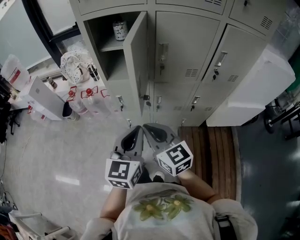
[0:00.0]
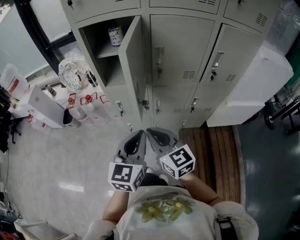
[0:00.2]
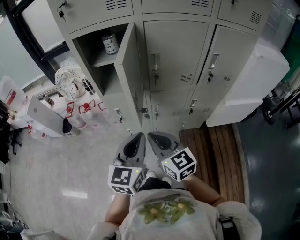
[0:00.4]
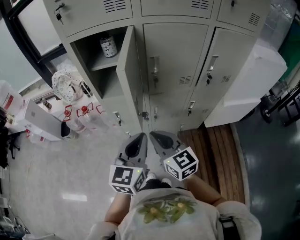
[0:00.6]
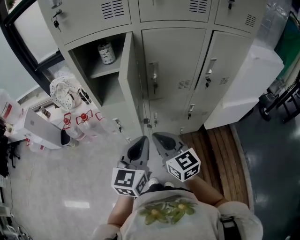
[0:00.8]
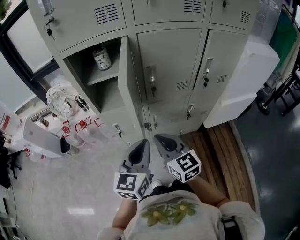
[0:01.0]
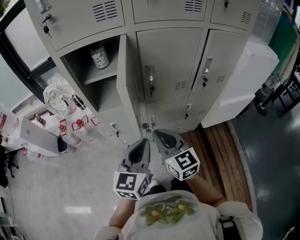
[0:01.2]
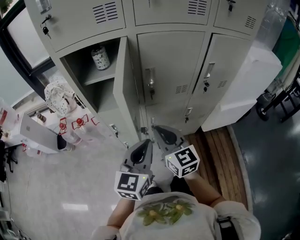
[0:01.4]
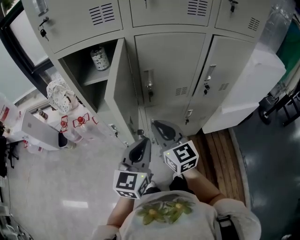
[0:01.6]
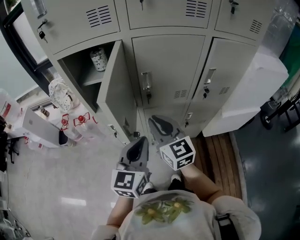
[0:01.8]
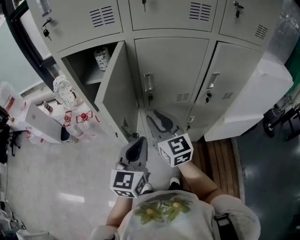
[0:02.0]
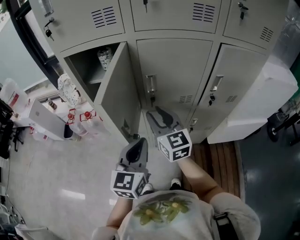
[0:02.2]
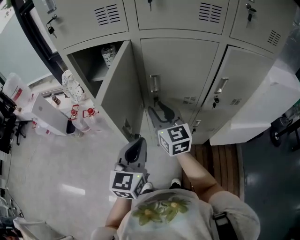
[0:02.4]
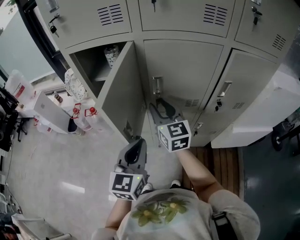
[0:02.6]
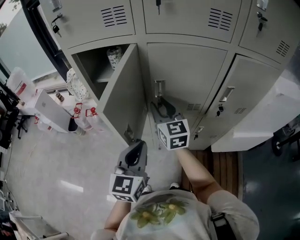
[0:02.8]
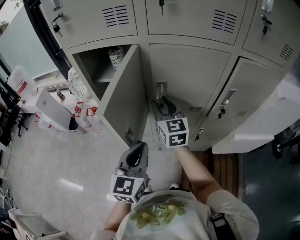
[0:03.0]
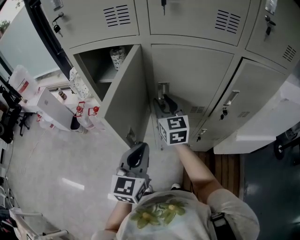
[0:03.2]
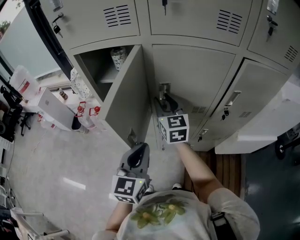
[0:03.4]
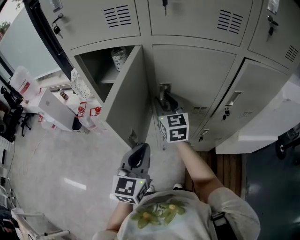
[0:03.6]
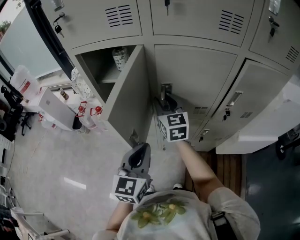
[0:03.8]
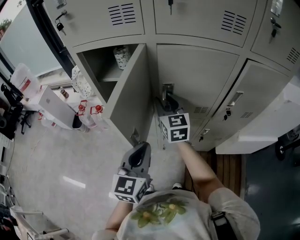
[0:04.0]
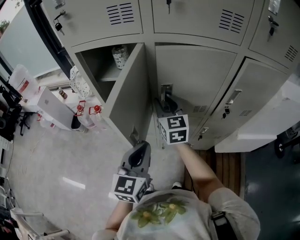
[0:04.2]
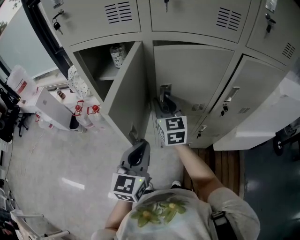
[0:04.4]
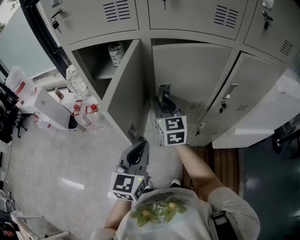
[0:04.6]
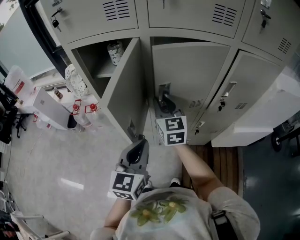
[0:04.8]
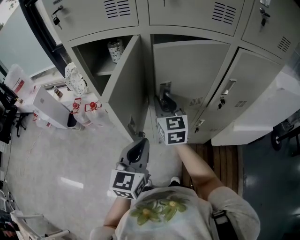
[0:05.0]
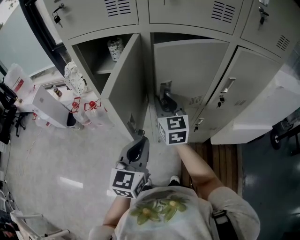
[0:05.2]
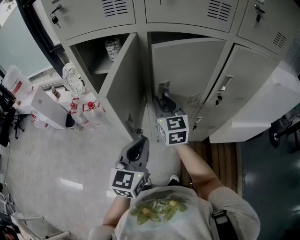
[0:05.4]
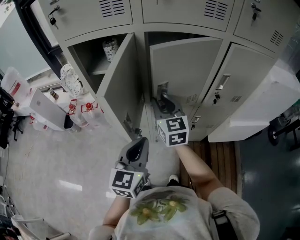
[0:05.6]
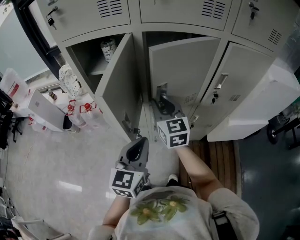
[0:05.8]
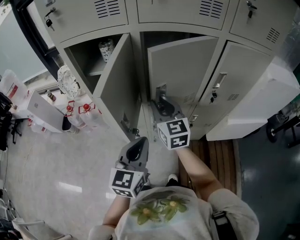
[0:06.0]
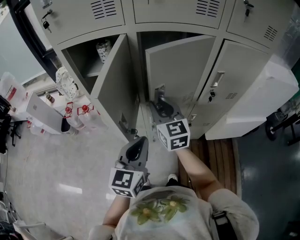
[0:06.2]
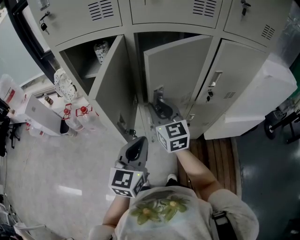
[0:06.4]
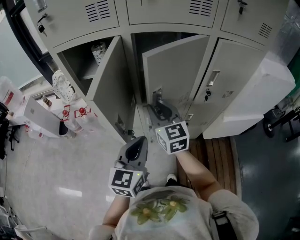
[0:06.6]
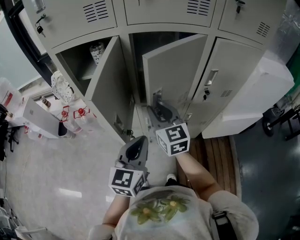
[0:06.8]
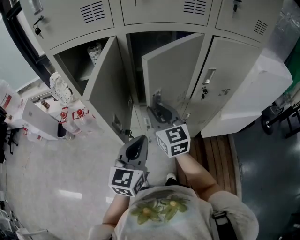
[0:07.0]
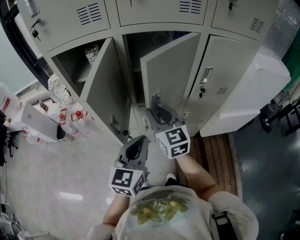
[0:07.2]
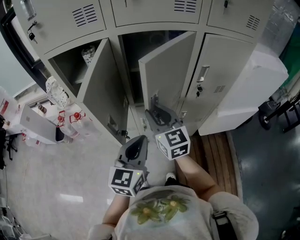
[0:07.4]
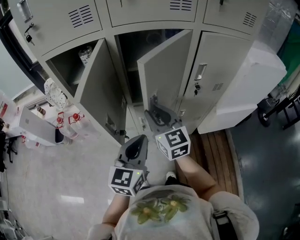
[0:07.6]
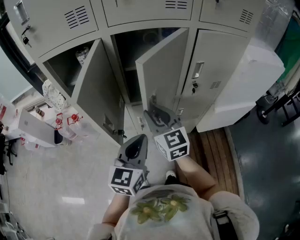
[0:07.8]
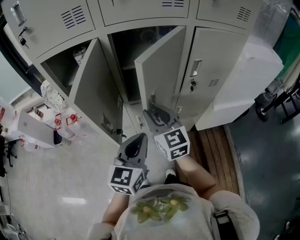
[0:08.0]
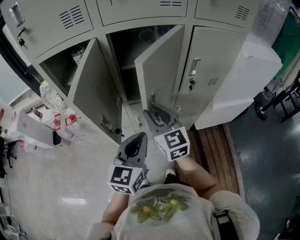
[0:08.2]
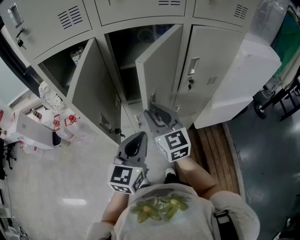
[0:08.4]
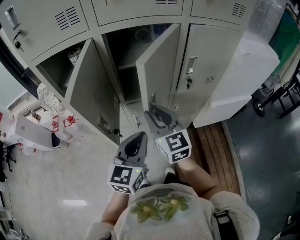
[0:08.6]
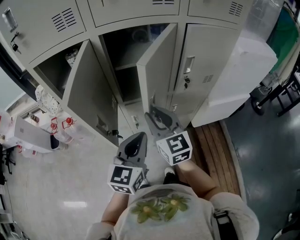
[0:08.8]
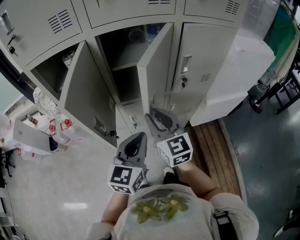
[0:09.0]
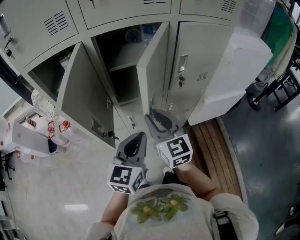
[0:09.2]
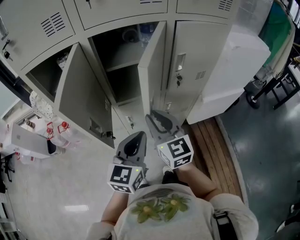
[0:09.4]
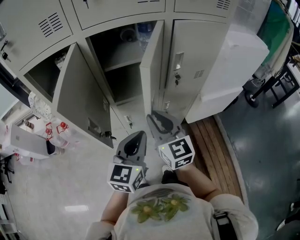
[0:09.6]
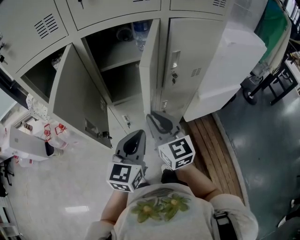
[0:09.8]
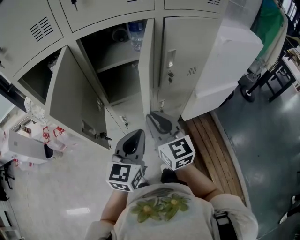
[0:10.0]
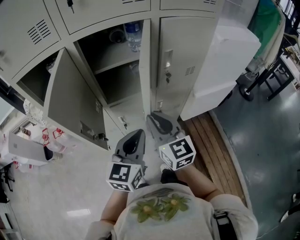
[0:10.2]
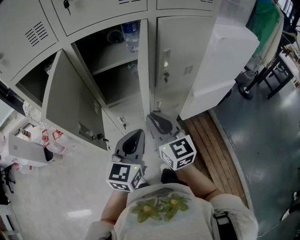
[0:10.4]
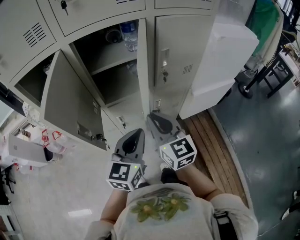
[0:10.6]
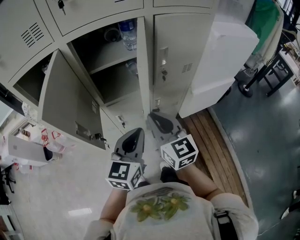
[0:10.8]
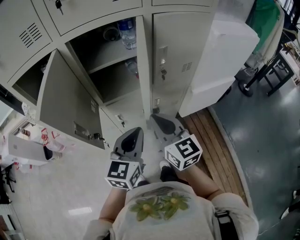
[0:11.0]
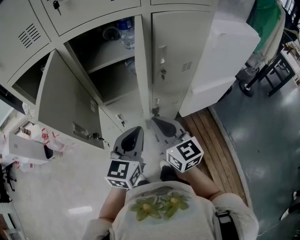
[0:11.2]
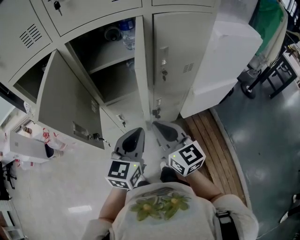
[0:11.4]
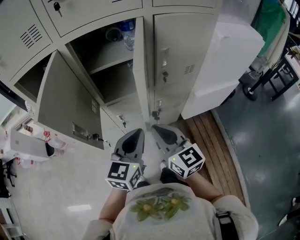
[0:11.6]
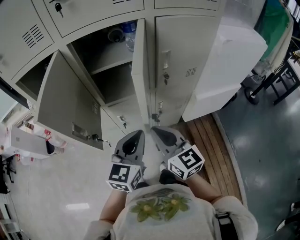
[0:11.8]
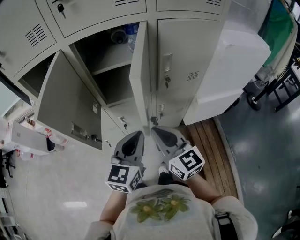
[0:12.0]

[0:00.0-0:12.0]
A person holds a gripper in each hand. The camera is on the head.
0:00.0 to 0:01.6: The right gripper is displaced forward and to the right by some 15 cm, while the left gripper is displaced forward by roughly 10 cm.
0:01.6 to 0:03.0: The right gripper is displaced forward by approximately 15 cm, and opens up.
0:03.0 to 0:04.4: There are only small adjustments of the grippers.
0:04.4 to 0:06.0: The right gripper moves backward, some 5 cm.
0:06.0 to 0:07.6: The right gripper travels backward by about 5 cm.
0:07.6 to 0:09.0: The right gripper shifts by roughly 5 cm.
0:09.0 to 0:10.4: The right gripper goes some 5 cm to the right.
0:10.4 to 0:12.0: The grippers make only small movements.

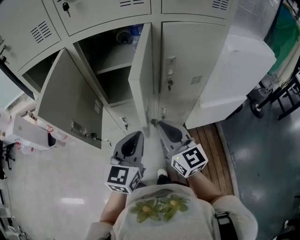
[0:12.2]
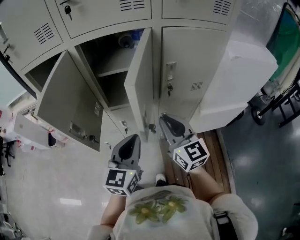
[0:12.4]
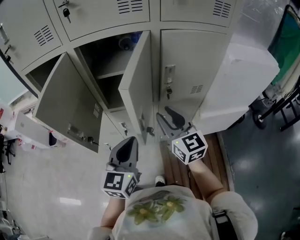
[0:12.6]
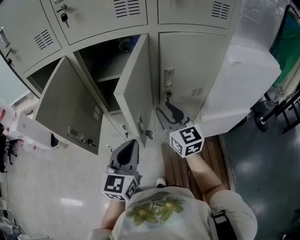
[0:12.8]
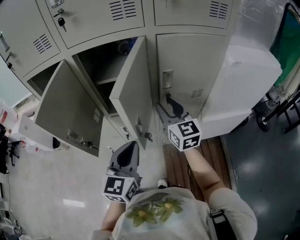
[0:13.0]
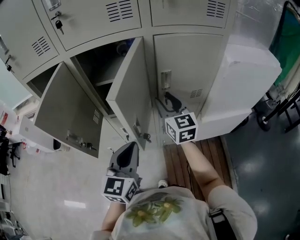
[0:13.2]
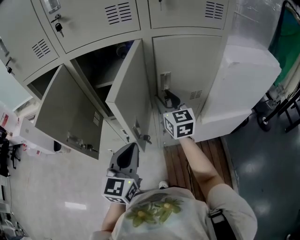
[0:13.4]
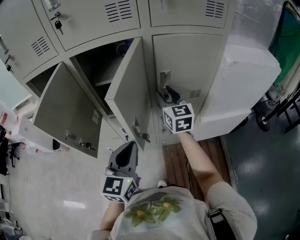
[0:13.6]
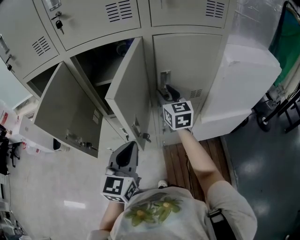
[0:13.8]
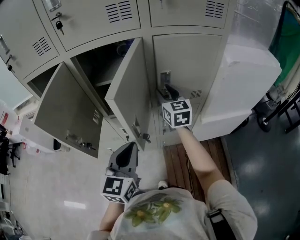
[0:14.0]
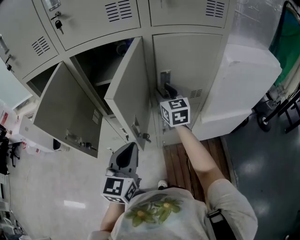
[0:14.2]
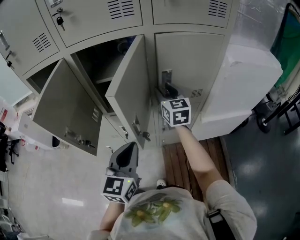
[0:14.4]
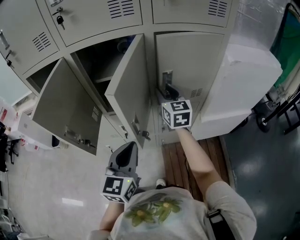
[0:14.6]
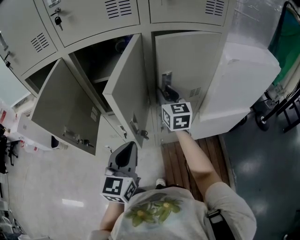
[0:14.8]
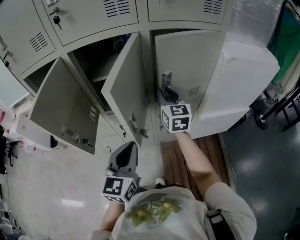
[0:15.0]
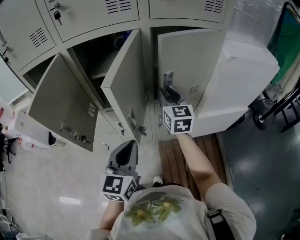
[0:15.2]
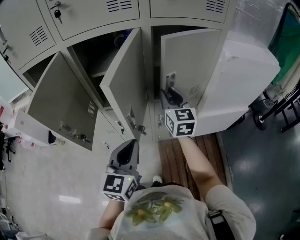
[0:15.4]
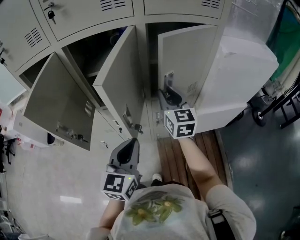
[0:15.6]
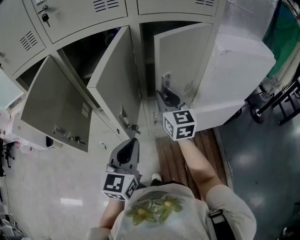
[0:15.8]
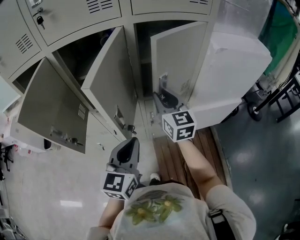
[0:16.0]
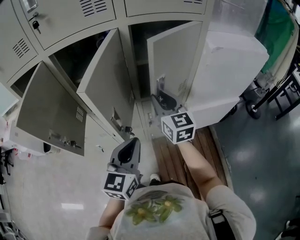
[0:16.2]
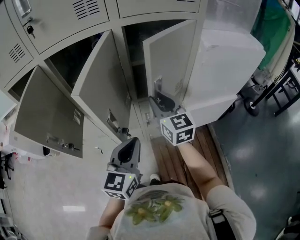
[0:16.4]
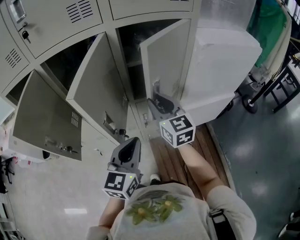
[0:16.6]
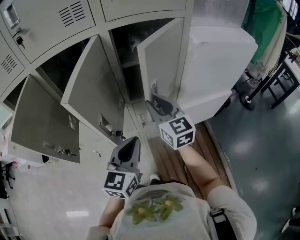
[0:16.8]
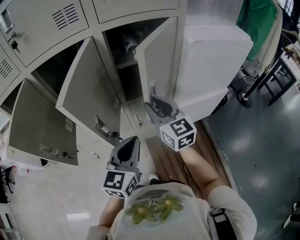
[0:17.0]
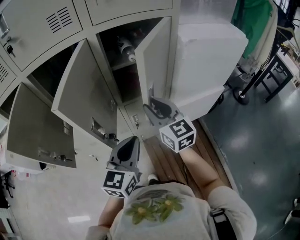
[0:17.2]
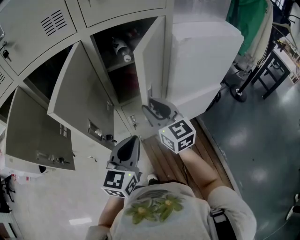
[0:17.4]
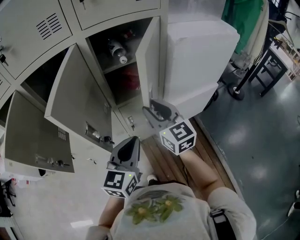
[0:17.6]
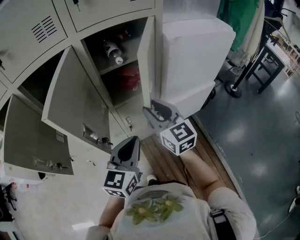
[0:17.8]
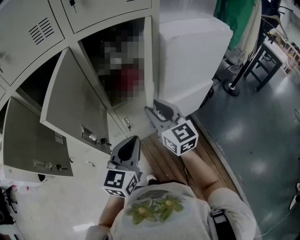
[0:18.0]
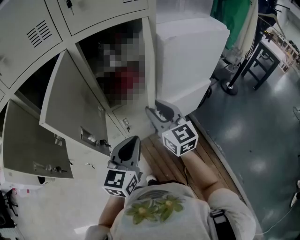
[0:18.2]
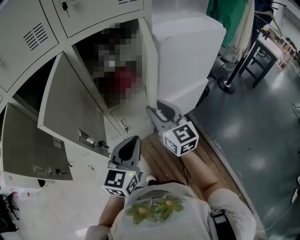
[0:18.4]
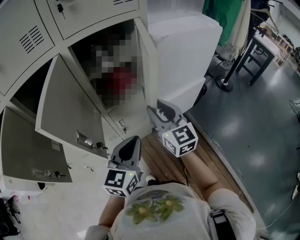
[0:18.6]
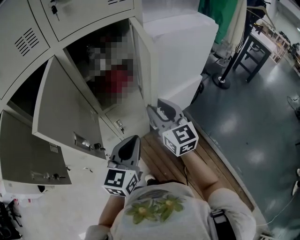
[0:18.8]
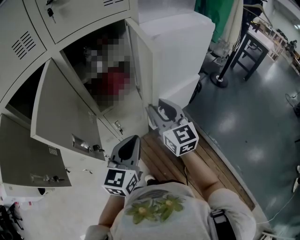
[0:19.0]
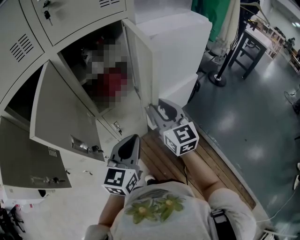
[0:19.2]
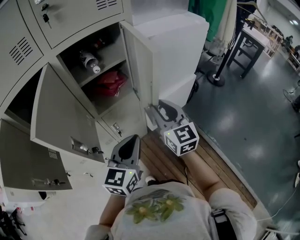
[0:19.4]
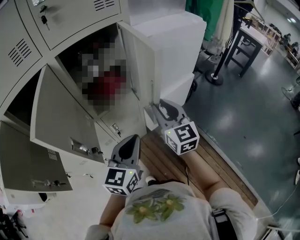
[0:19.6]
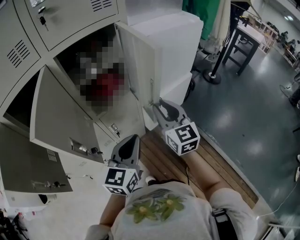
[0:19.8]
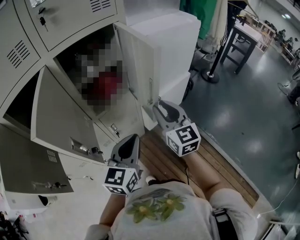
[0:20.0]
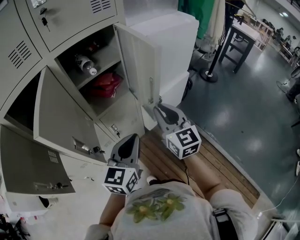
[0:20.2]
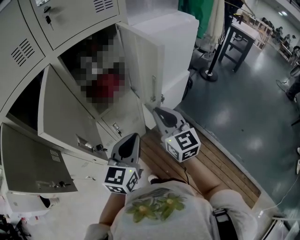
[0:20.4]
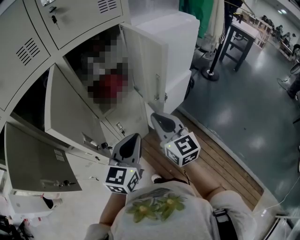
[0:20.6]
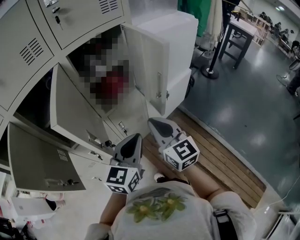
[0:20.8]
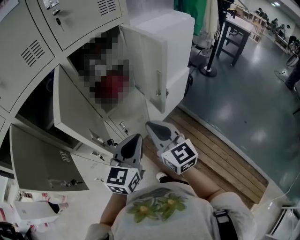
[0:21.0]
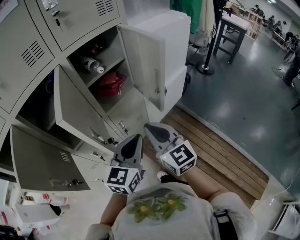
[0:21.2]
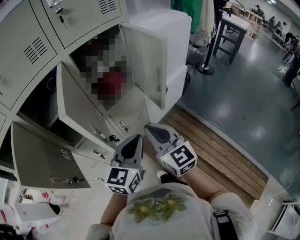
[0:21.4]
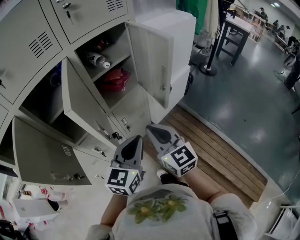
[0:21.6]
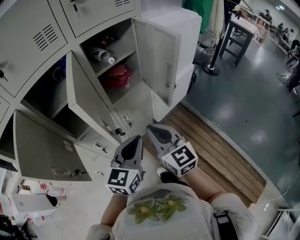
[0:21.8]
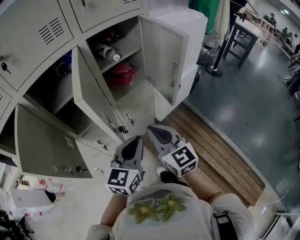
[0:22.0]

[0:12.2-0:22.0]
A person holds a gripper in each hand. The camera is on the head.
0:12.2 to 0:13.6: The right gripper goes roughly 20 cm forward, and opens.
0:13.6 to 0:15.0: The grippers move only a little.
0:15.0 to 0:16.4: The right gripper goes approximately 5 cm backward, while the left gripper goes roughly 5 cm to the right.
0:16.4 to 0:17.8: The two grippers go approximately 5 cm to the right.
0:17.8 to 0:19.2: The right gripper heads to the right, covering some 10 cm.
0:19.2 to 0:20.6: The right gripper moves backward, roughly 10 cm, and closes.
0:20.6 to 0:22.0: Both grippers move to the left and backward, some 10 cm.

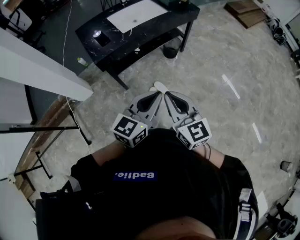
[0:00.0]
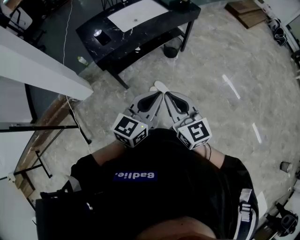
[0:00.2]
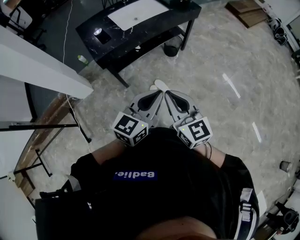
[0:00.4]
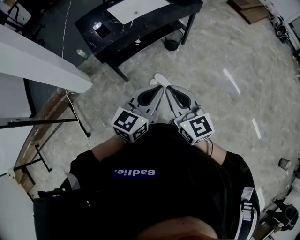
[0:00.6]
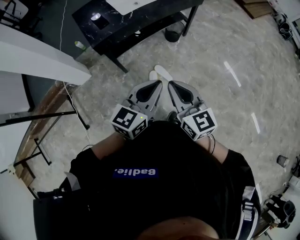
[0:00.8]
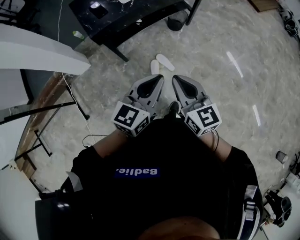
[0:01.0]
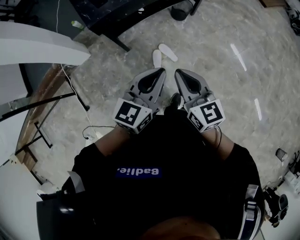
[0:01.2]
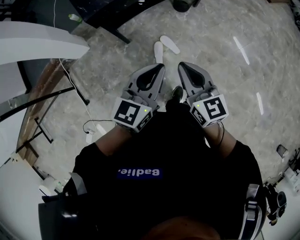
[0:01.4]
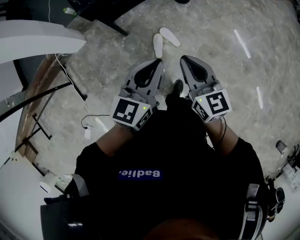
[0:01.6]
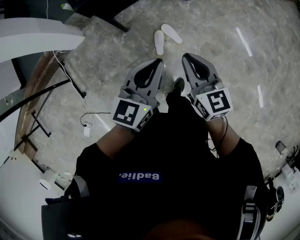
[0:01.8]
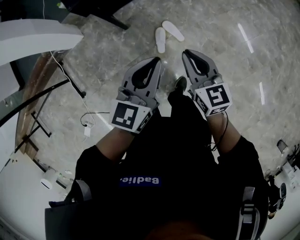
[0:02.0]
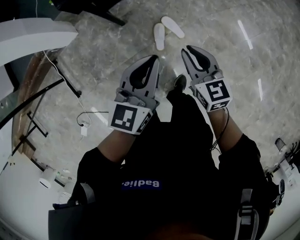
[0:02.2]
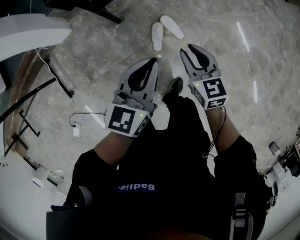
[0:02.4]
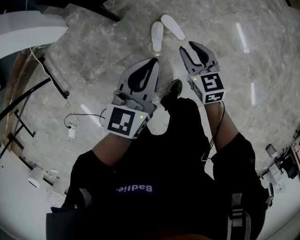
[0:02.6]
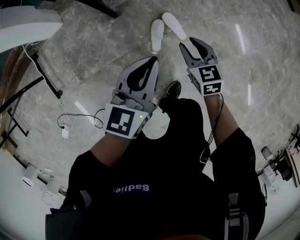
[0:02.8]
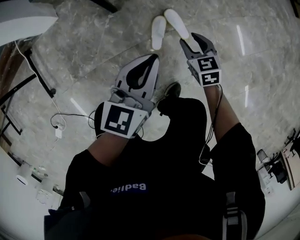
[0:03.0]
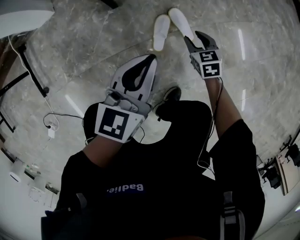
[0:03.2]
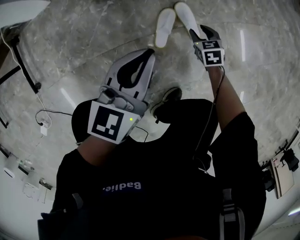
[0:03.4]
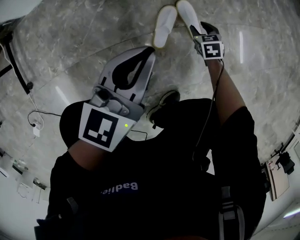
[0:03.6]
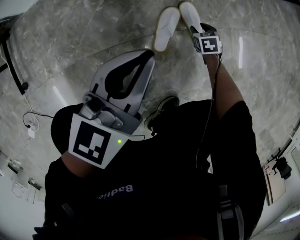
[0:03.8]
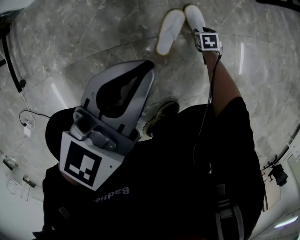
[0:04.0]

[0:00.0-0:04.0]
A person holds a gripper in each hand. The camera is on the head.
0:00.0 to 0:01.4: The two grippers go some 10 cm downward.
0:01.4 to 0:02.6: Both grippers move downward, roughly 30 cm. The right gripper turns by approximately 20 degrees, and opens its fingers.
0:02.6 to 0:04.0: The right gripper shifts about 60 cm downward, and angles its fingers downward, by about 30 degrees; the left gripper travels downward by approximately 30 cm.
